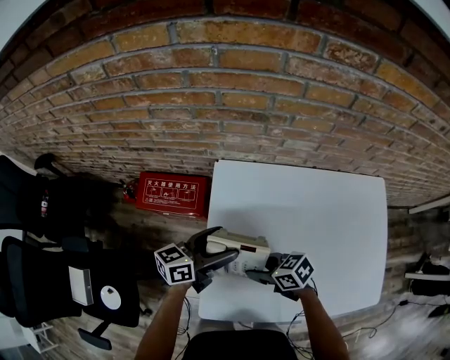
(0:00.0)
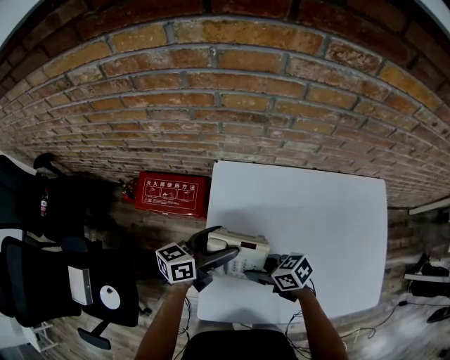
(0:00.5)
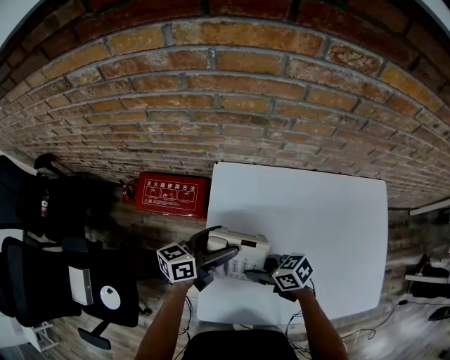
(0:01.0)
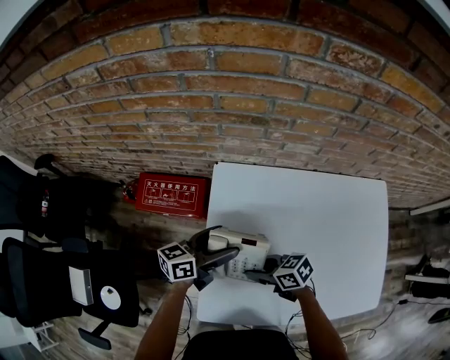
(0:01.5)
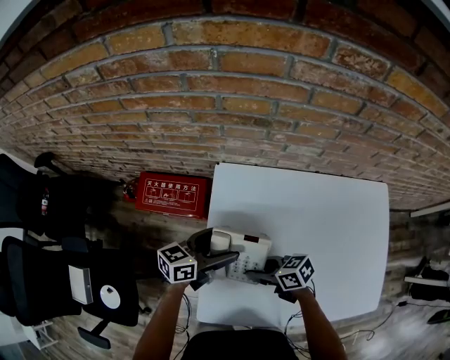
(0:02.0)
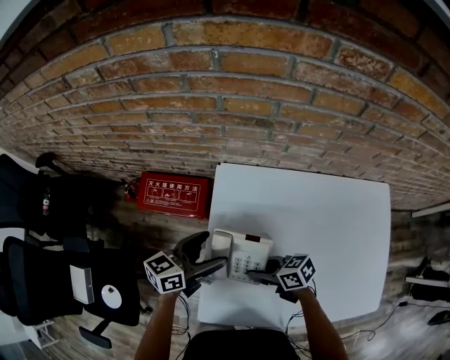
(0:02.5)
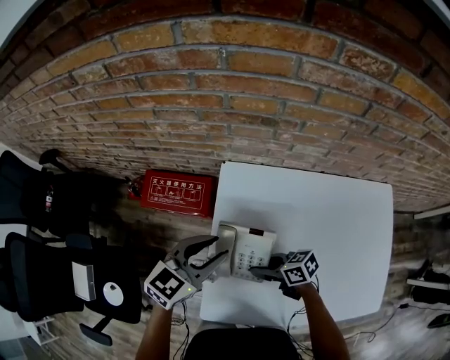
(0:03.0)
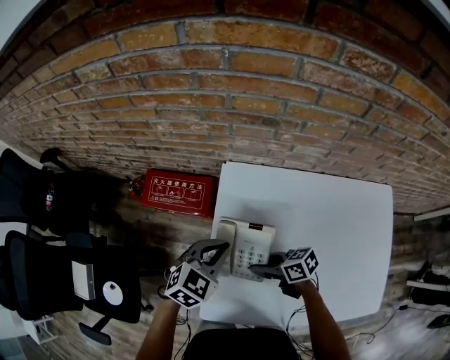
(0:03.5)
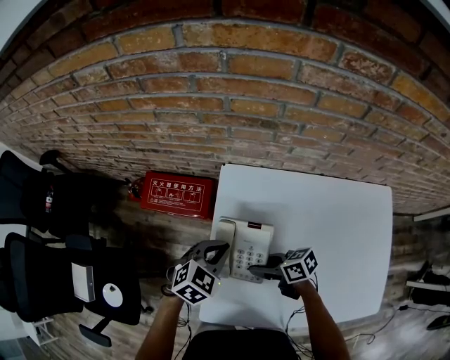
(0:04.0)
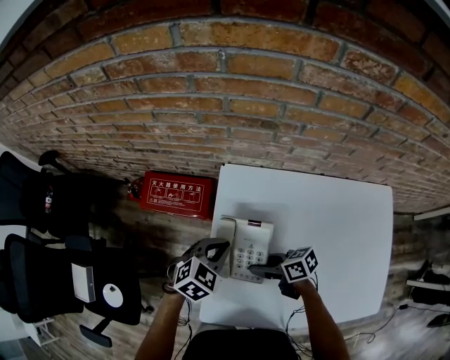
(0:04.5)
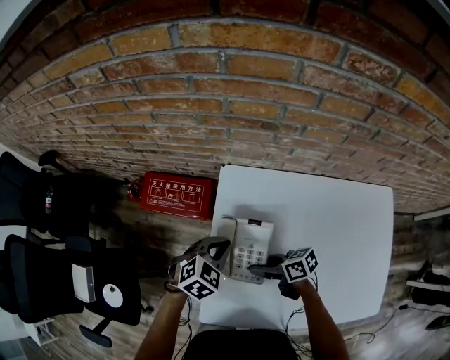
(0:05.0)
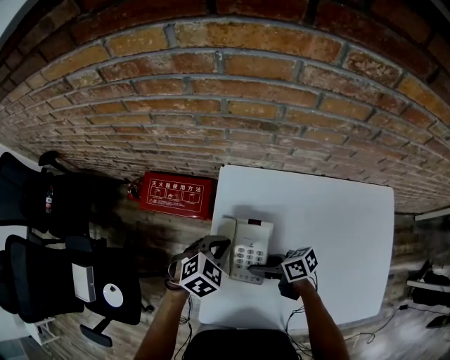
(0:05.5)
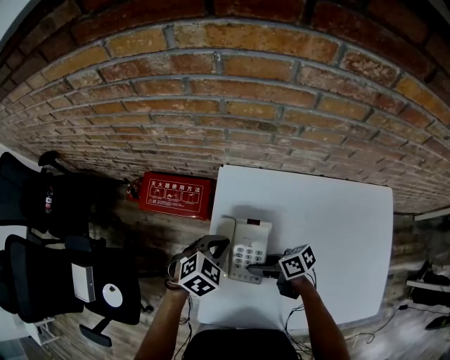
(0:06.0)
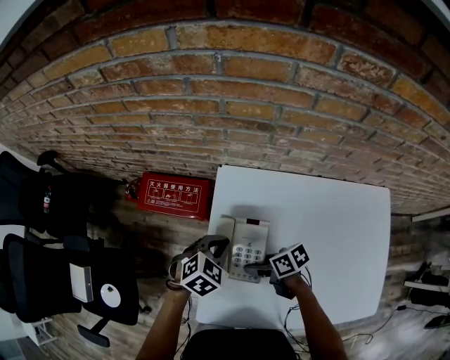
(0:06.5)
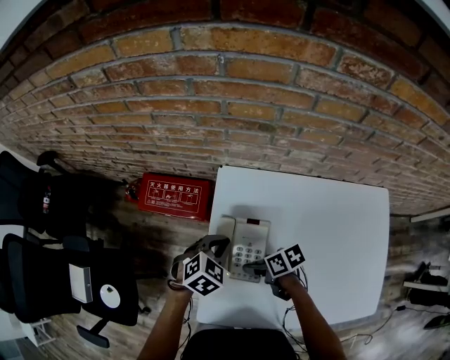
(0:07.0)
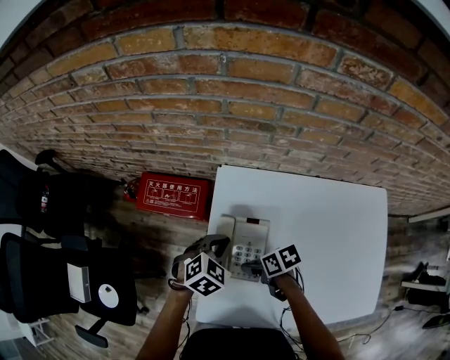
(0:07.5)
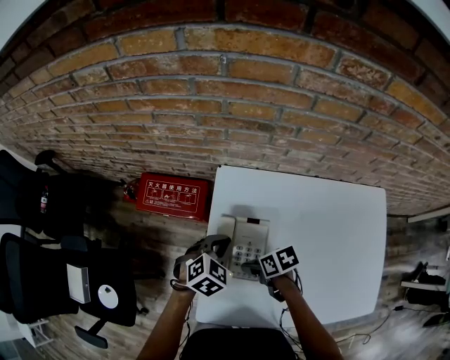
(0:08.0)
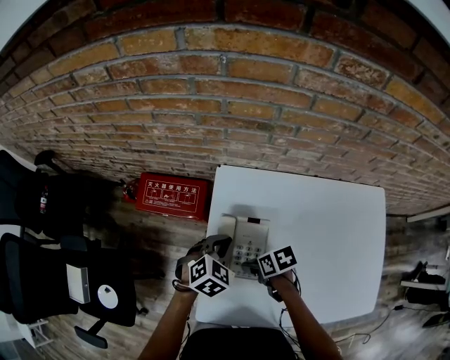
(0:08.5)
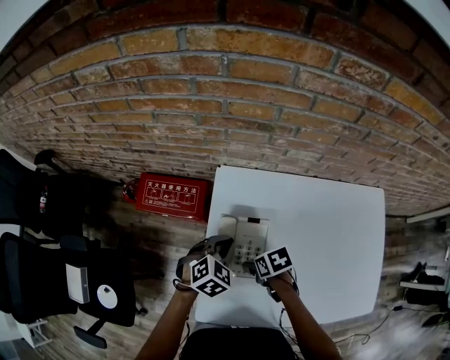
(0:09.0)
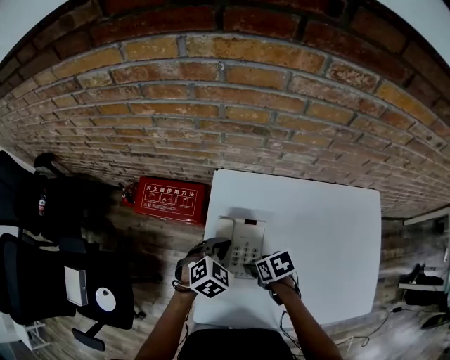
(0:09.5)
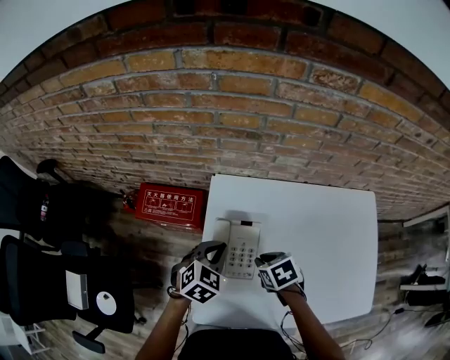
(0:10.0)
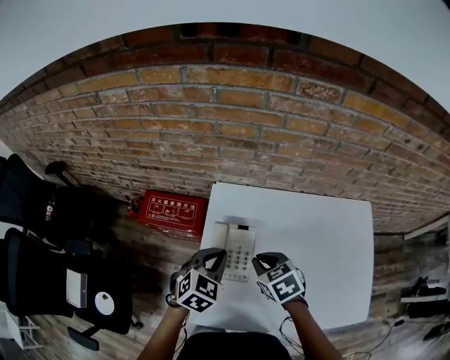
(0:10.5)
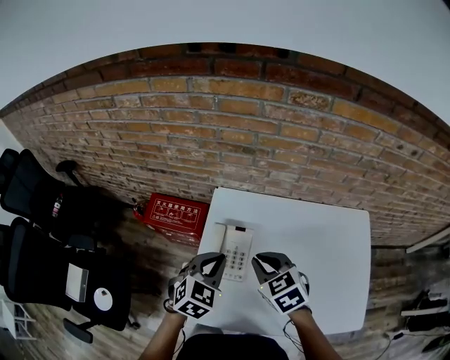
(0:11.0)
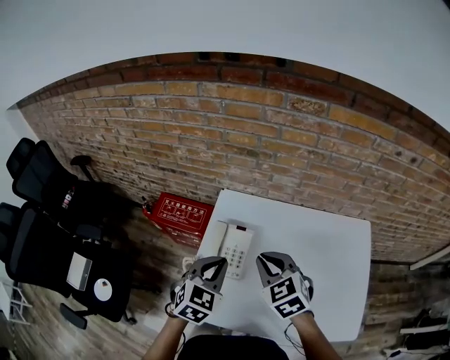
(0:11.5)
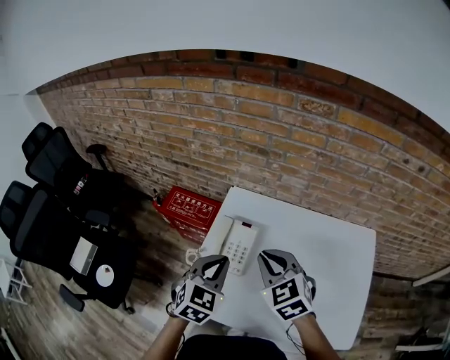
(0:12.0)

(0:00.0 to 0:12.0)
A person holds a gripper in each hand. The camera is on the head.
0:00.0 - 0:02.0: The grippers stay close to where they were, moving slightly.
0:02.0 - 0:04.0: The left gripper goes upward and returns, about 10 cm each way, points its fingers some 30 degrees further downward, and closes its fingers.
0:04.0 - 0:06.0: There are only small adjustments of the grippers.
0:06.0 - 0:08.0: The right gripper rotates about 30 degrees.
0:08.0 - 0:10.0: The right gripper goes some 5 cm upward, turns by about 30 degrees, and closes; the left gripper moves approximately 5 cm.
0:10.0 - 0:12.0: The left gripper travels upward and backward by about 15 cm, and rotates roughly 20 degrees. Meanwhile the right gripper shifts about 20 cm upward, and tips its fingers upward by roughly 30 degrees.

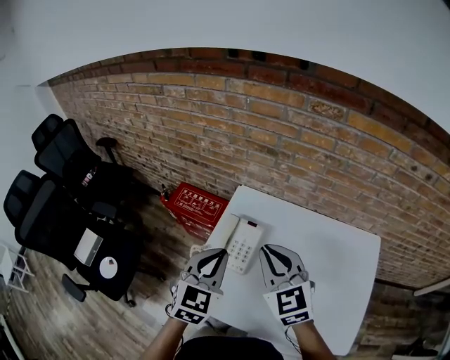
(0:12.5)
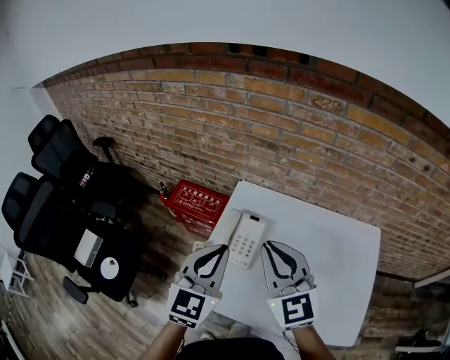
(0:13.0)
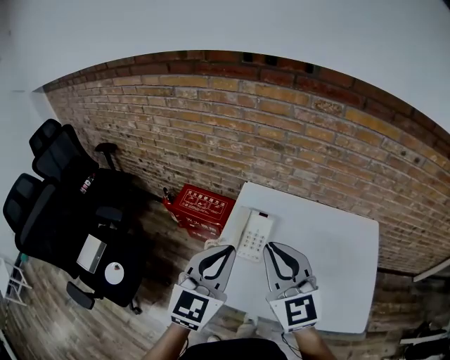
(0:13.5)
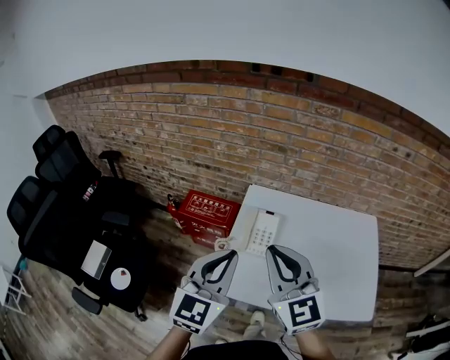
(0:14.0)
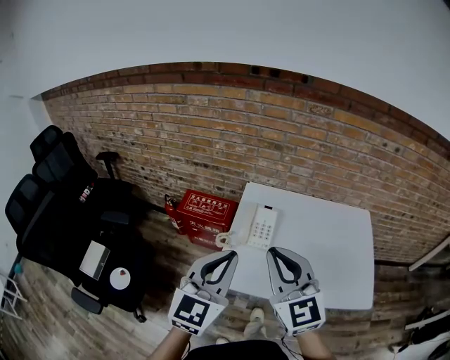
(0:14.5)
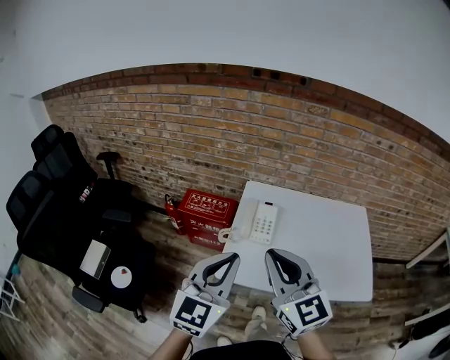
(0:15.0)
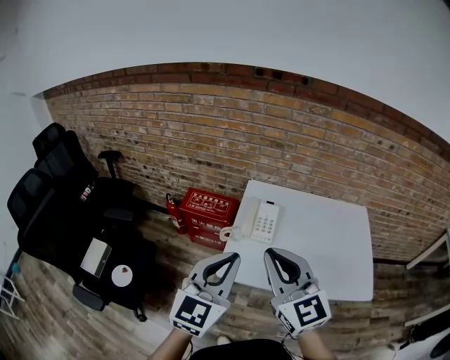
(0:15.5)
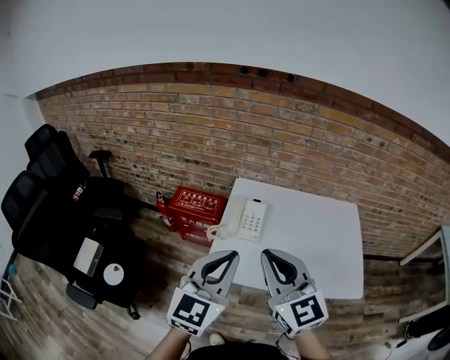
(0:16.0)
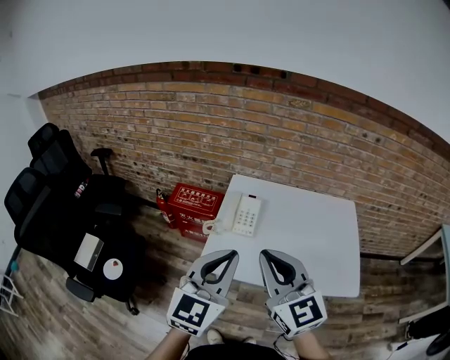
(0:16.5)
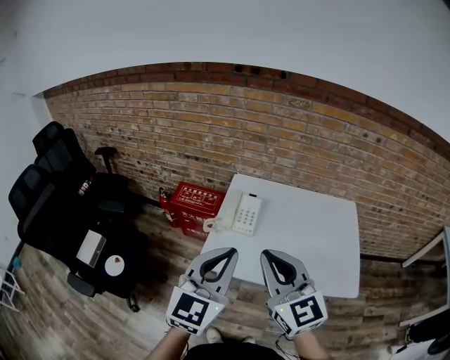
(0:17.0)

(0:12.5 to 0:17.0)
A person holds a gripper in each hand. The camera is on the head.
0:12.5 - 0:14.5: The two grippers go roughly 25 cm backward, to the left and upward. The left gripper changes its angle by about 20 degrees.
0:14.5 - 0:17.0: The two grippers go roughly 10 cm backward and to the right.

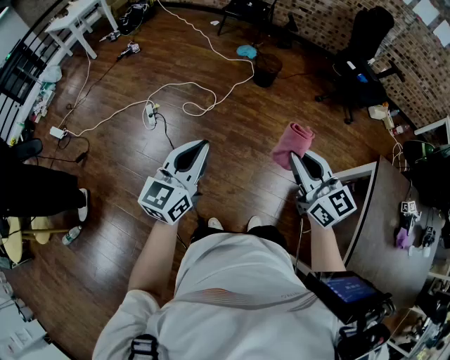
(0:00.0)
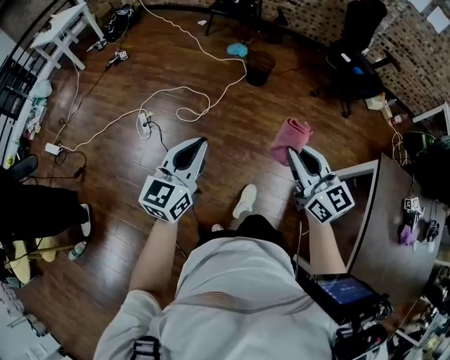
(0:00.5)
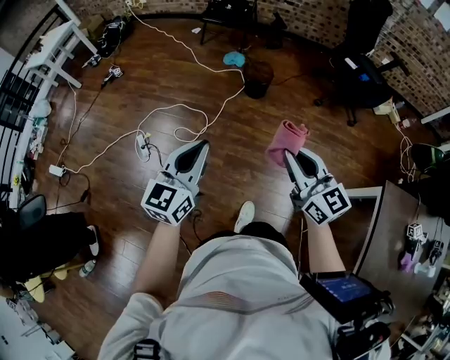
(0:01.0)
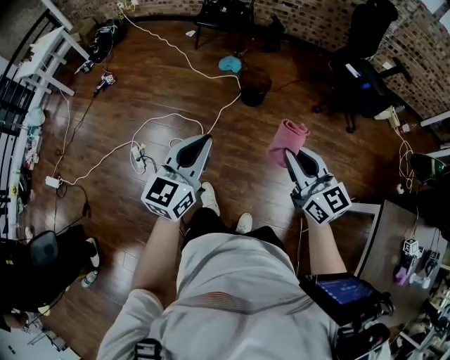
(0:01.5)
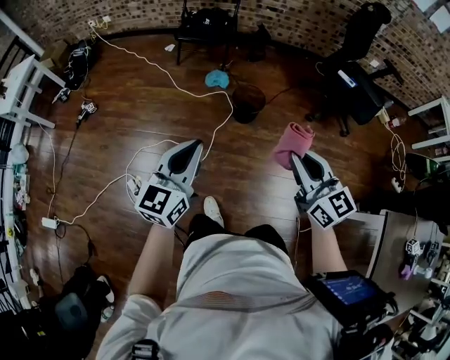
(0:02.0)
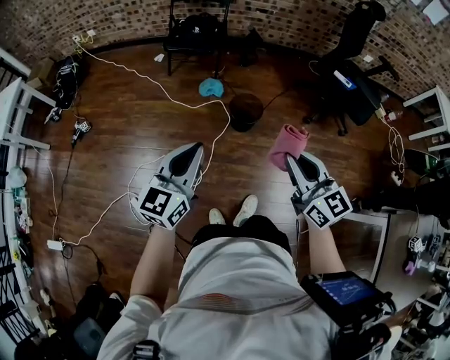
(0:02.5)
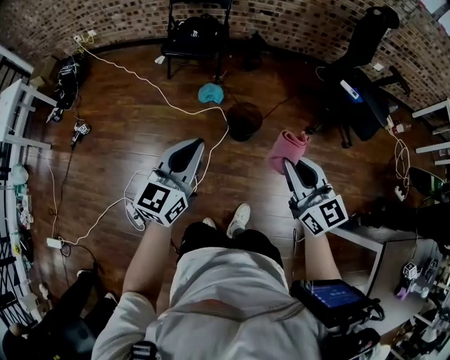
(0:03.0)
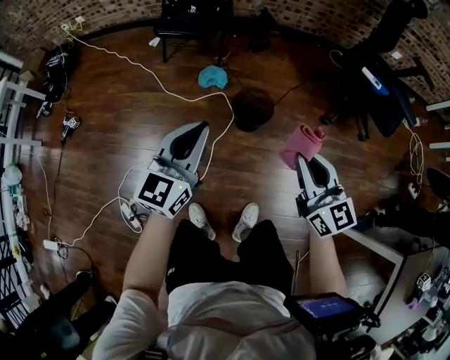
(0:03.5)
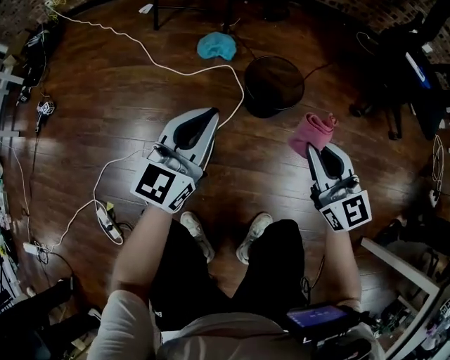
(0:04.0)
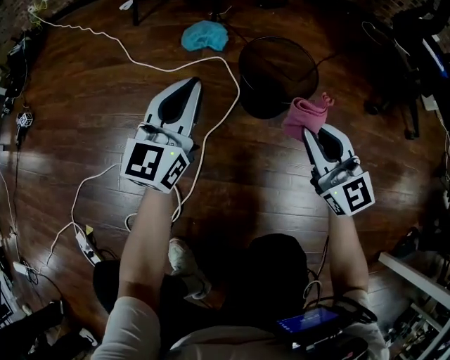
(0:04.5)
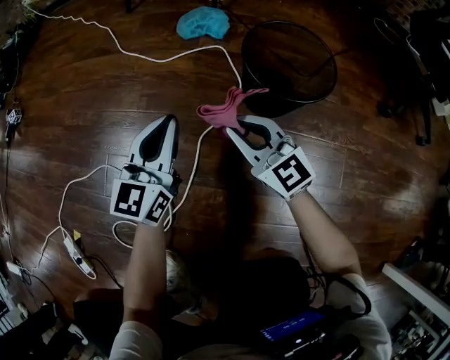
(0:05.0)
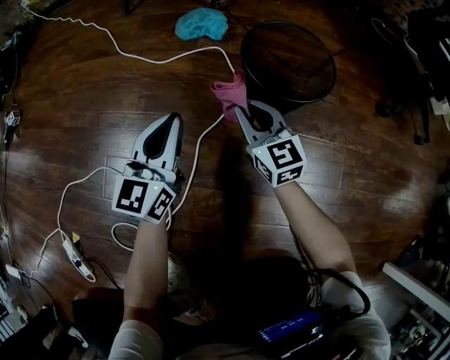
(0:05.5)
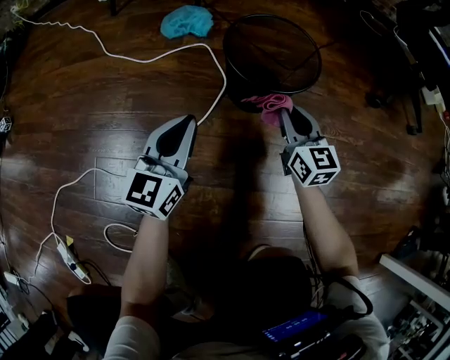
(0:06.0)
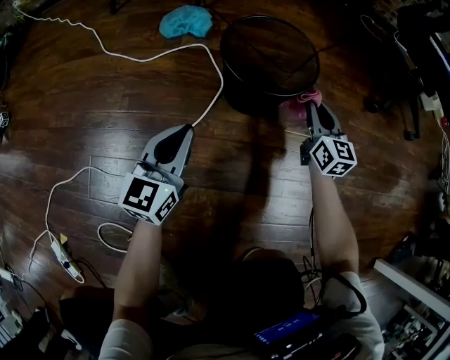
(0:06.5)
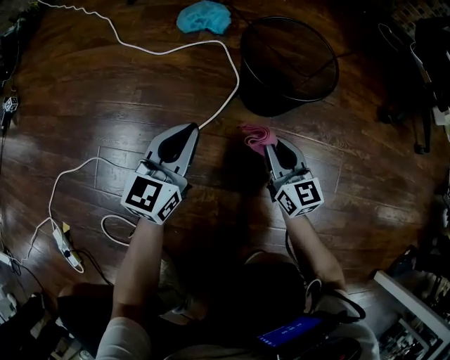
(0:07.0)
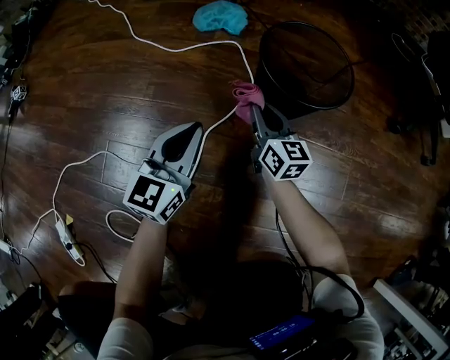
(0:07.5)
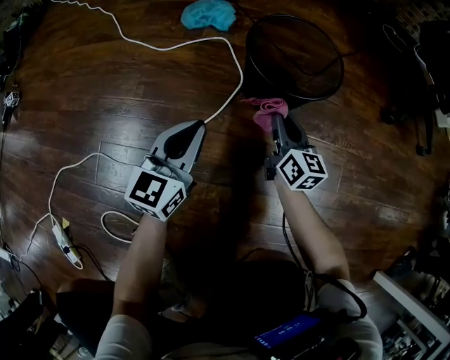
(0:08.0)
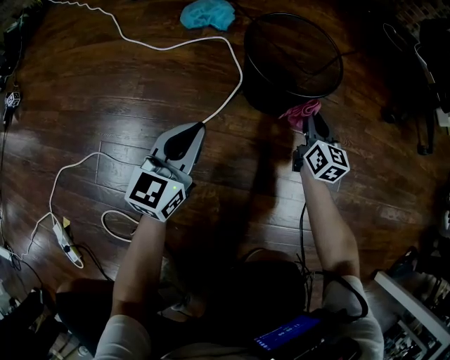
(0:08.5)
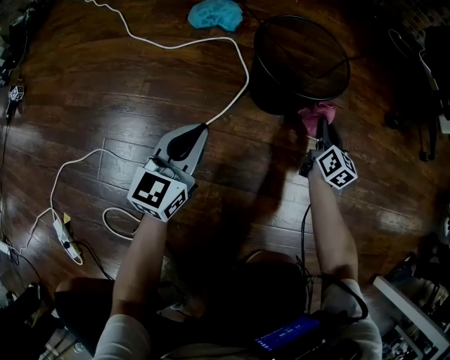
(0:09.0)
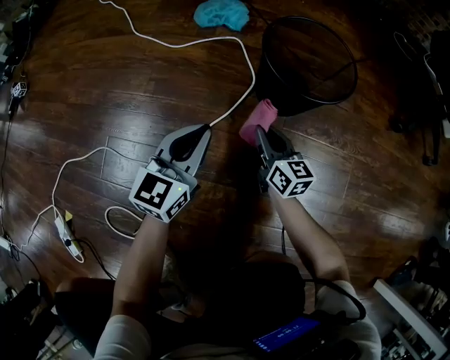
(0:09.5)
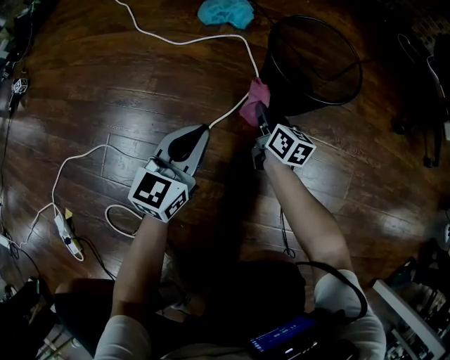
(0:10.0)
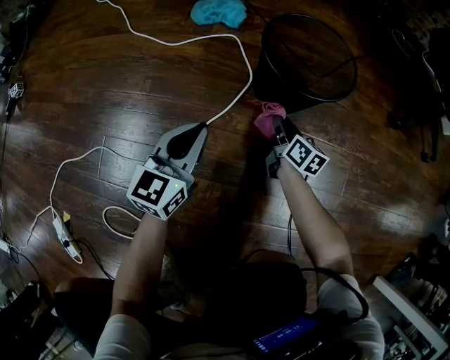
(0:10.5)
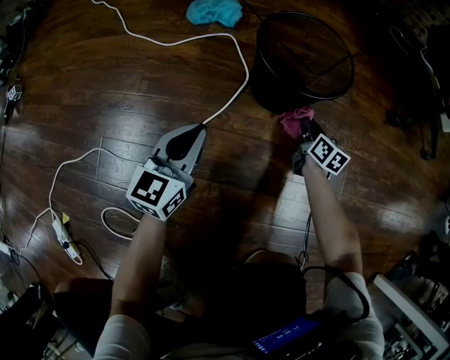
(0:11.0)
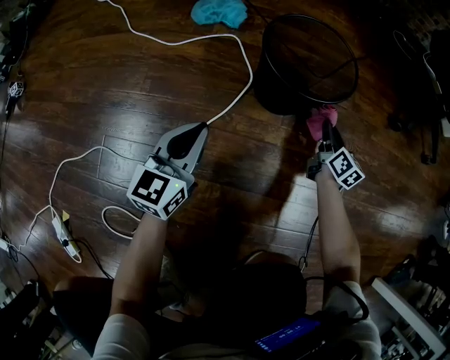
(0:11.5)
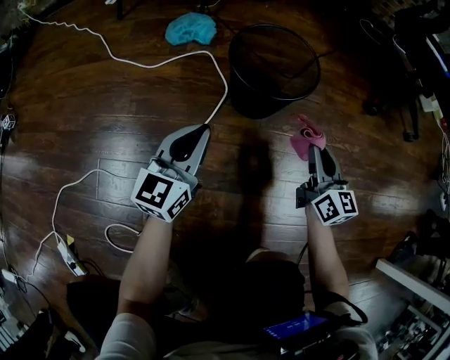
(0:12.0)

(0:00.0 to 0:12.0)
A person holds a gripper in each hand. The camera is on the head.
0:00.0 - 0:02.0: Both grippers are carried forward, some 50 cm.
0:02.0 - 0:04.0: Both grippers travel together downward and forward, roughly 60 cm.
0:04.0 - 0:06.0: The grippers both shift downward by approximately 35 cm.
0:06.0 - 0:08.0: The right gripper goes left and right, some 20 cm each way, reversing 2 times.
0:08.0 - 0:10.0: The right gripper moves to the left and downward, approximately 10 cm.
0:10.0 - 0:12.0: The right gripper is displaced to the right, upward and backward by approximately 30 cm, and swivels approximately 30 degrees; the left gripper travels upward and to the right by roughly 5 cm.
